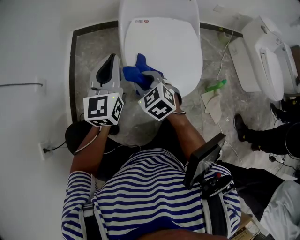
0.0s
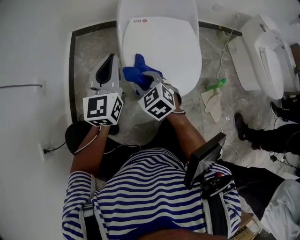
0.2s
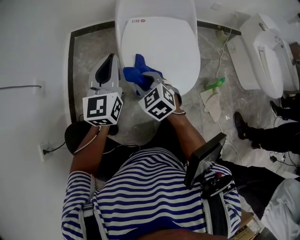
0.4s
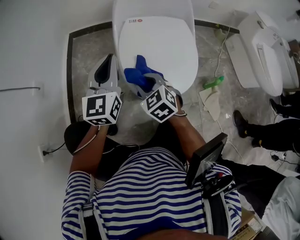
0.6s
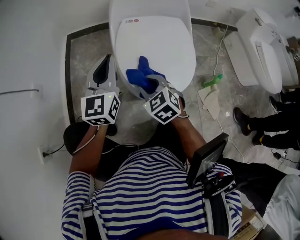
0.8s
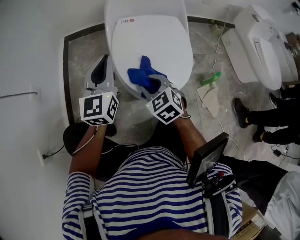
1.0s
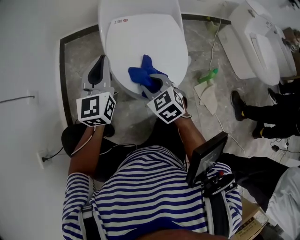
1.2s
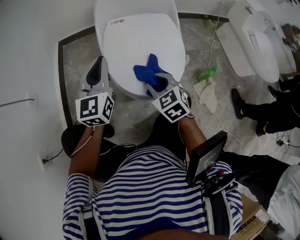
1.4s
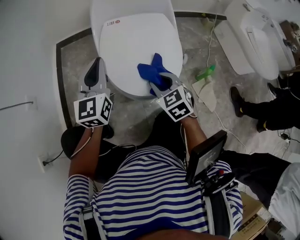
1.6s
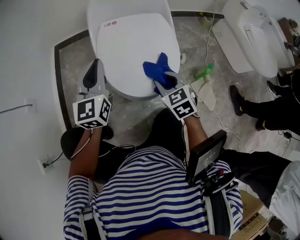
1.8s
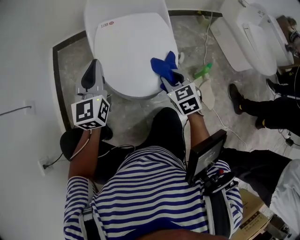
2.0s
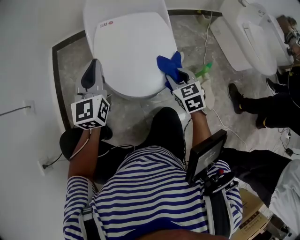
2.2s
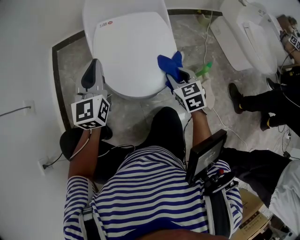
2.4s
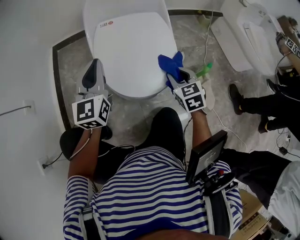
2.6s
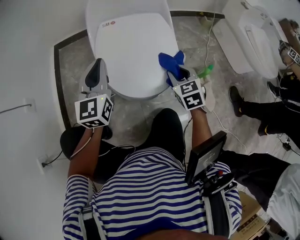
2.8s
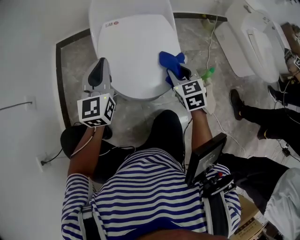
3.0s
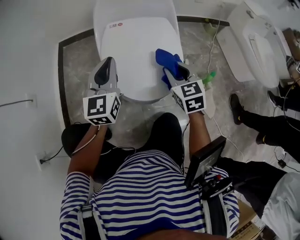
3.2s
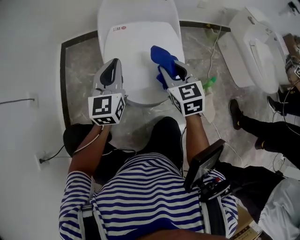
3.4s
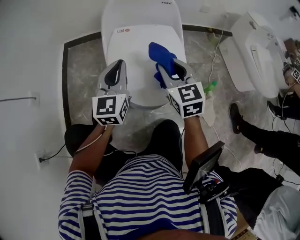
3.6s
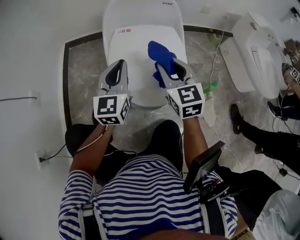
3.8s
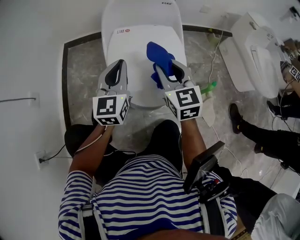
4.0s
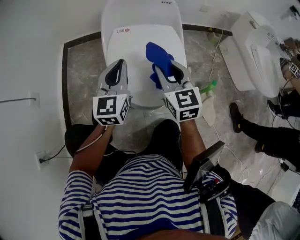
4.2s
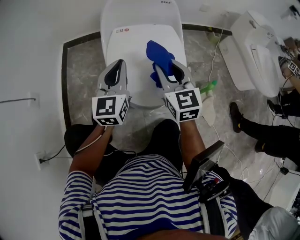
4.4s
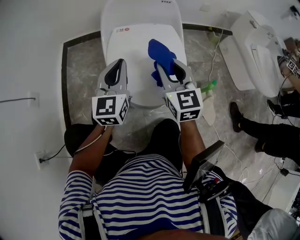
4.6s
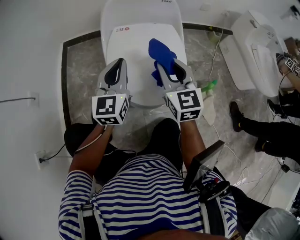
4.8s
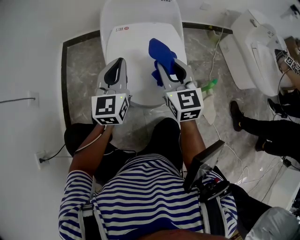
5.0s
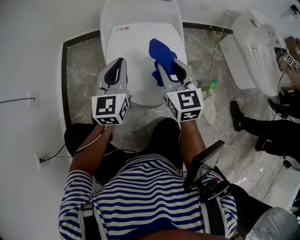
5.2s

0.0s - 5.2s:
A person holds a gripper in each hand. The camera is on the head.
0.0s - 1.8s: The right gripper shifts approximately 15 cm to the right. Meanwhile the left gripper changes place by roughly 5 cm.
1.8s - 3.4s: The right gripper heads upward and forward, covering approximately 10 cm.
3.4s - 5.2s: The grippers make only small movements.

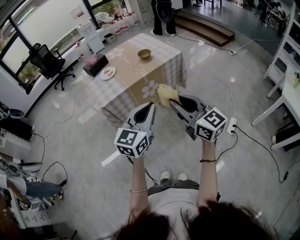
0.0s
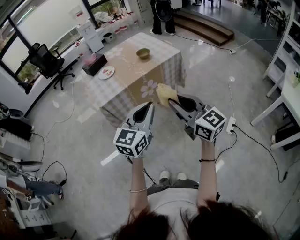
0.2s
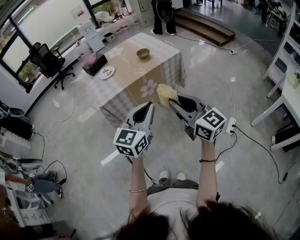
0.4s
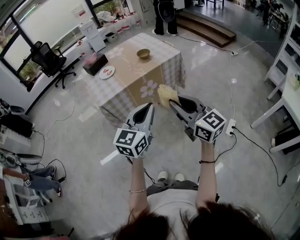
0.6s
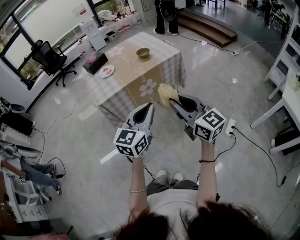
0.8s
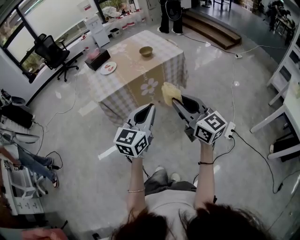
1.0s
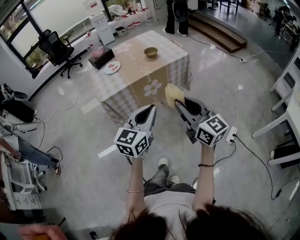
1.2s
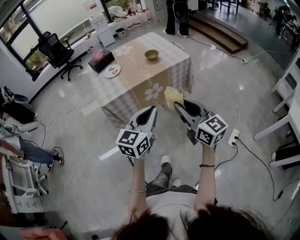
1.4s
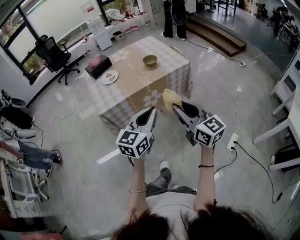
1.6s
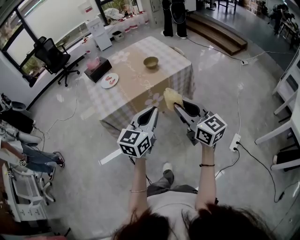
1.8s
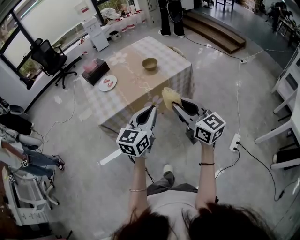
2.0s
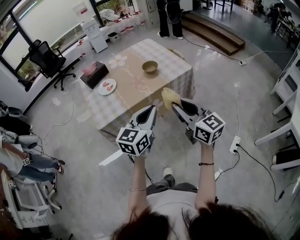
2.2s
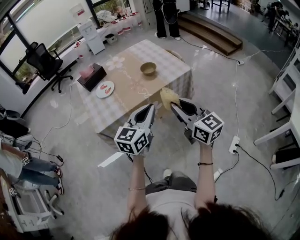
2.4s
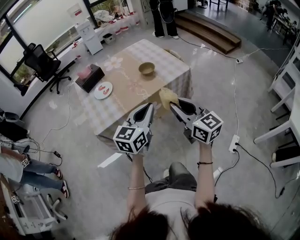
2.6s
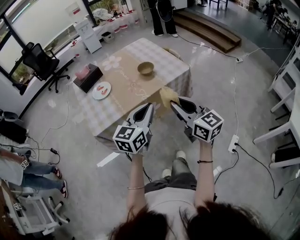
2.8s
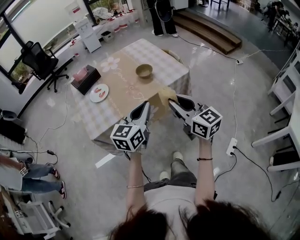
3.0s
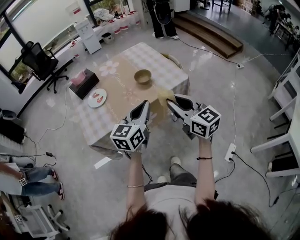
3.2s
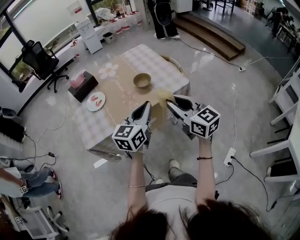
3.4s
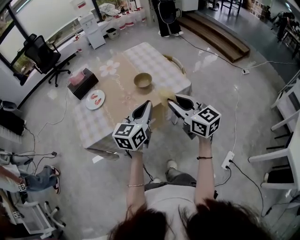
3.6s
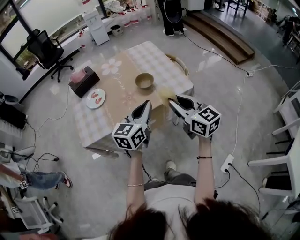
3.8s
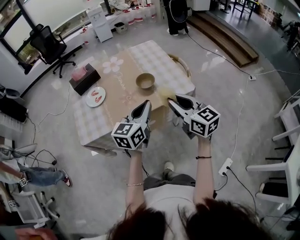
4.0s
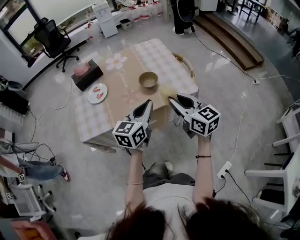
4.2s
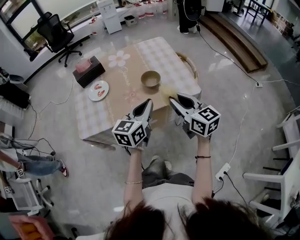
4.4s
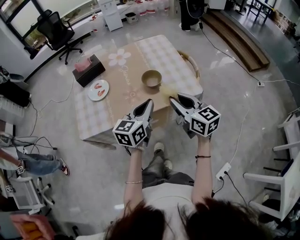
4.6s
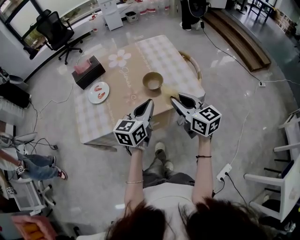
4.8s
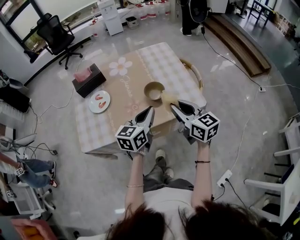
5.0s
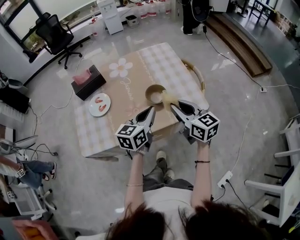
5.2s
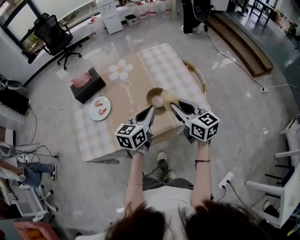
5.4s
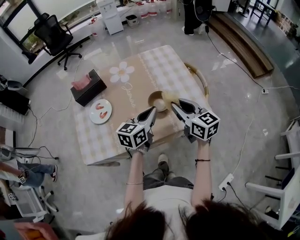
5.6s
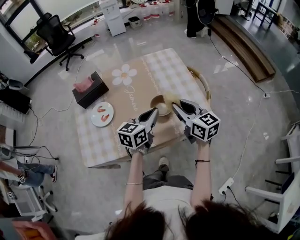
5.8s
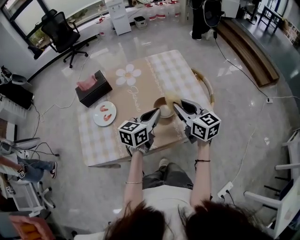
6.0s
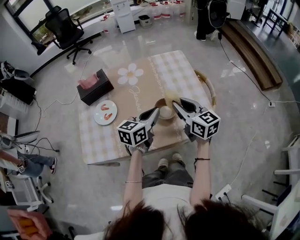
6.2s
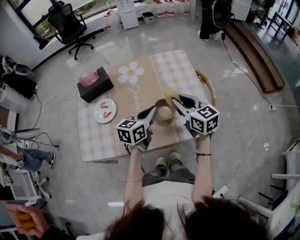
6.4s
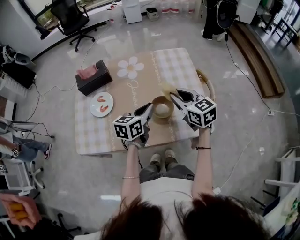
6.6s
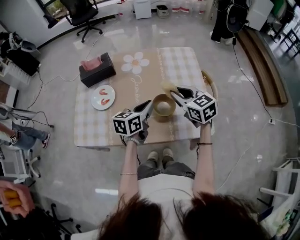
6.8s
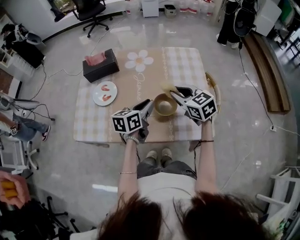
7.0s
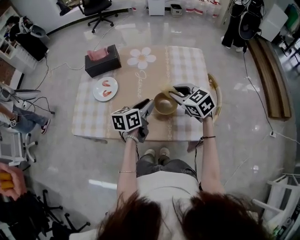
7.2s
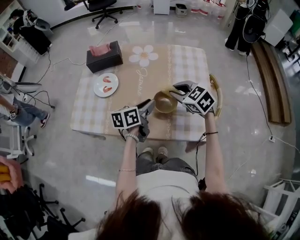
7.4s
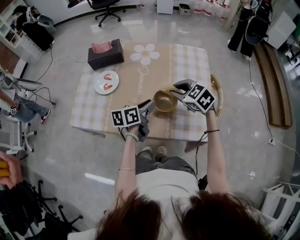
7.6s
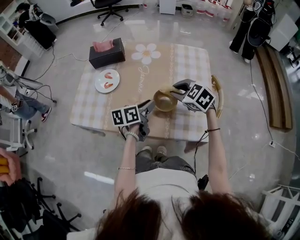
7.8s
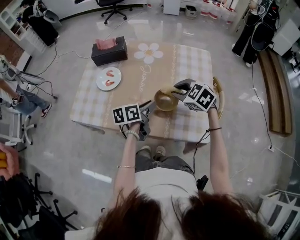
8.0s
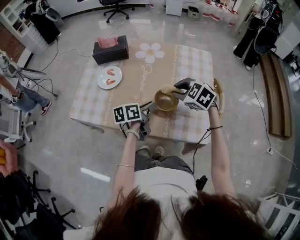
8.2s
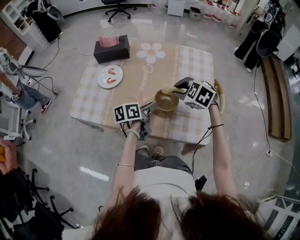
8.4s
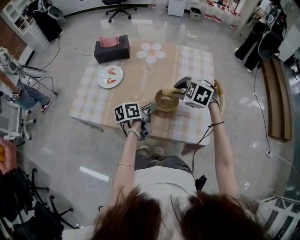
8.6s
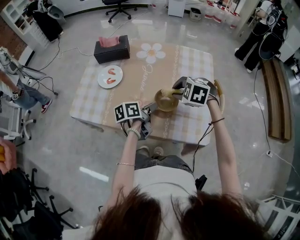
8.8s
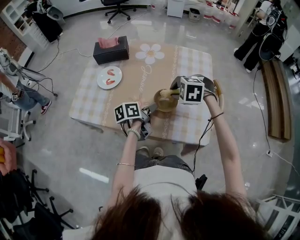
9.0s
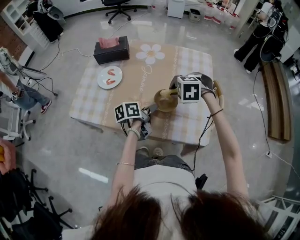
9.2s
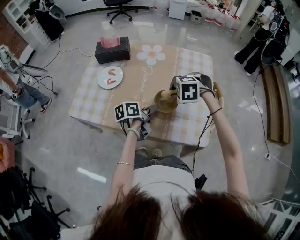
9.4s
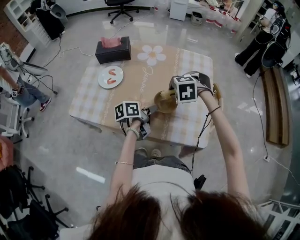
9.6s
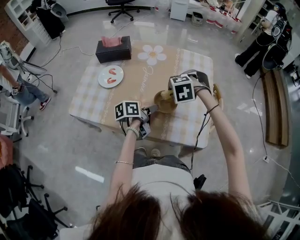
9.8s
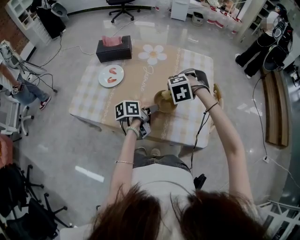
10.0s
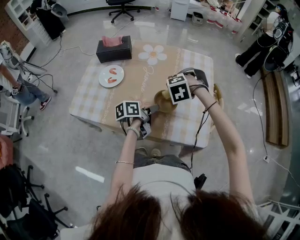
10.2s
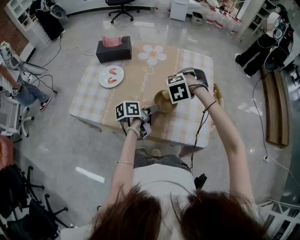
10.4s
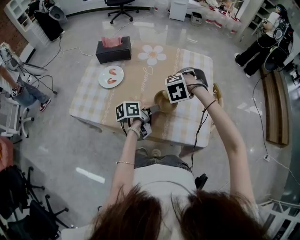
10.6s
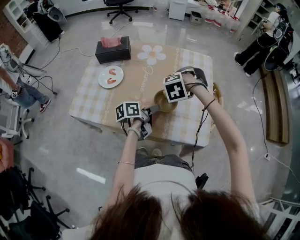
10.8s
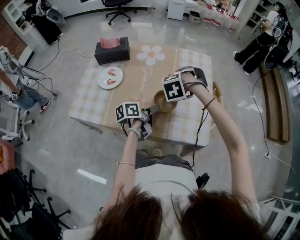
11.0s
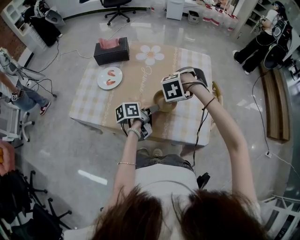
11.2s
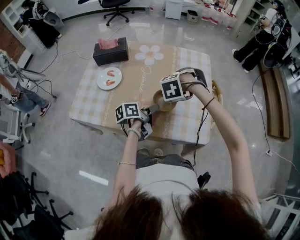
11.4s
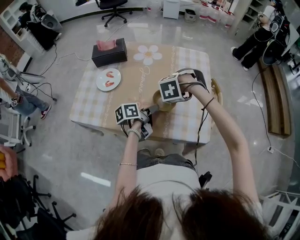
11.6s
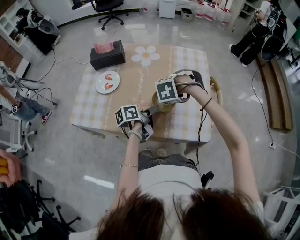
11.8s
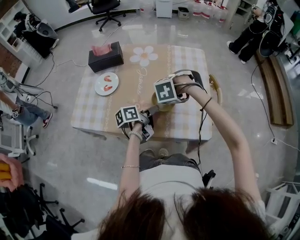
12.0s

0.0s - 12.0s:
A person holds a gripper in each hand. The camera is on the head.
0.0s - 1.6s: The grippers both shift forward by approximately 10 cm.
1.6s - 3.0s: Both grippers move forward, roughly 20 cm.
3.0s - 4.4s: Both grippers travel together forward, approximately 15 cm.
4.4s - 6.0s: Both grippers move forward, about 20 cm.
6.0s - 7.6s: The right gripper ends up approximately 10 cm from where it was, and angles its fingers downward, by about 30 degrees, while the left gripper moves downward, about 5 cm, rotates roughly 40 degrees, and opens its fingers.
7.6s - 9.0s: The left gripper changes its angle by about 20 degrees. Meanwhile the right gripper changes its angle by some 40 degrees.
9.0s - 10.4s: The right gripper swivels approximately 20 degrees.
10.4s - 12.0s: The right gripper turns by roughly 20 degrees.

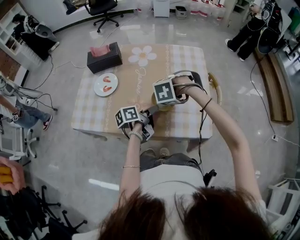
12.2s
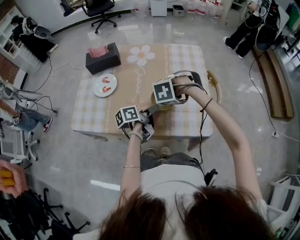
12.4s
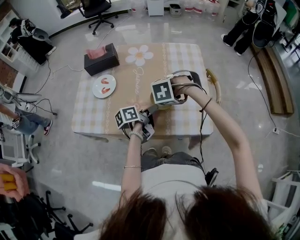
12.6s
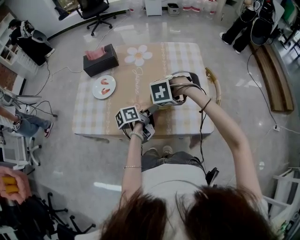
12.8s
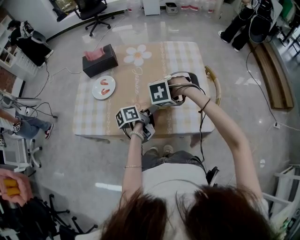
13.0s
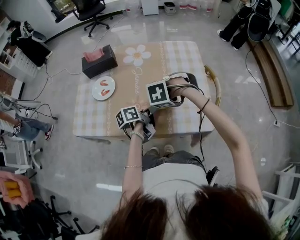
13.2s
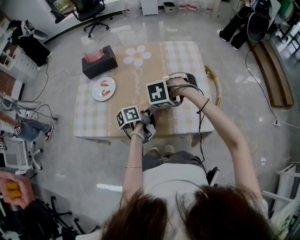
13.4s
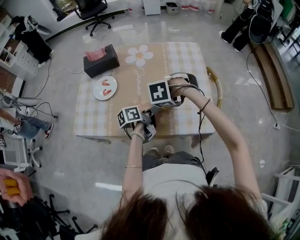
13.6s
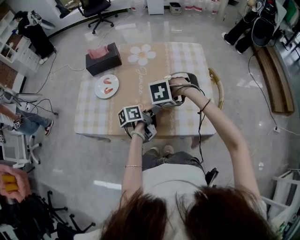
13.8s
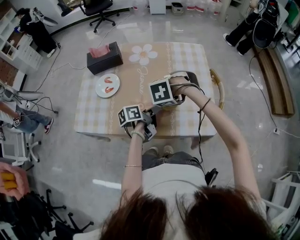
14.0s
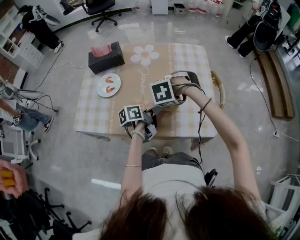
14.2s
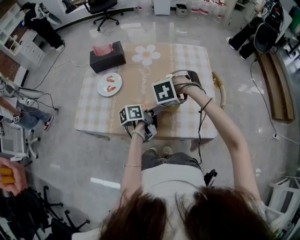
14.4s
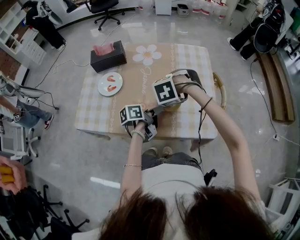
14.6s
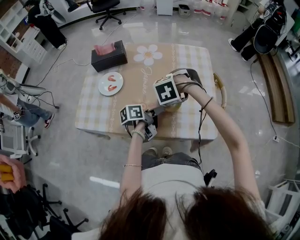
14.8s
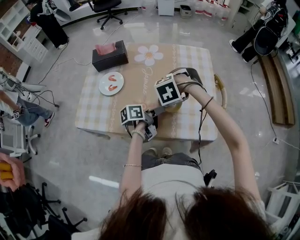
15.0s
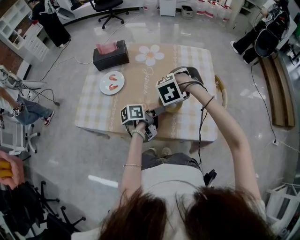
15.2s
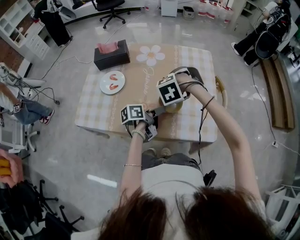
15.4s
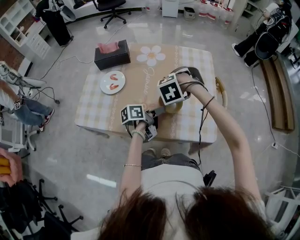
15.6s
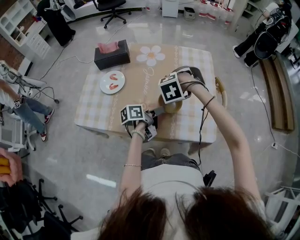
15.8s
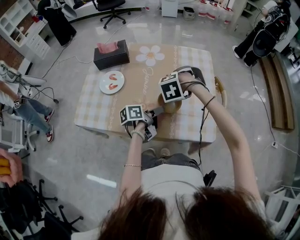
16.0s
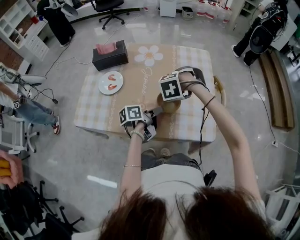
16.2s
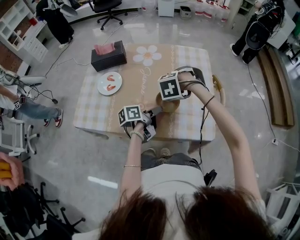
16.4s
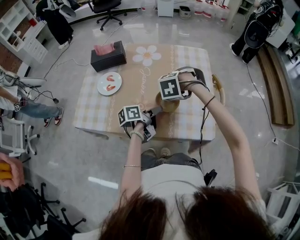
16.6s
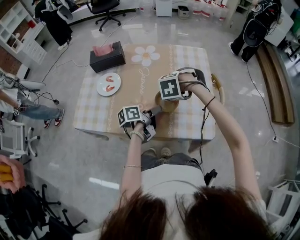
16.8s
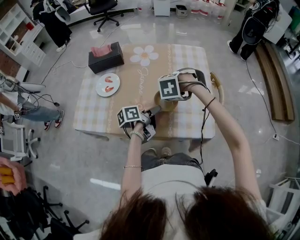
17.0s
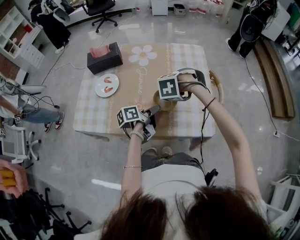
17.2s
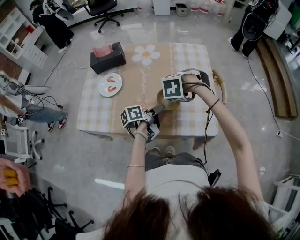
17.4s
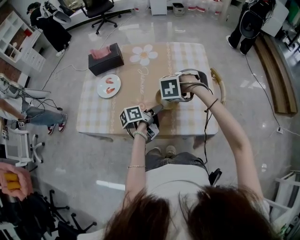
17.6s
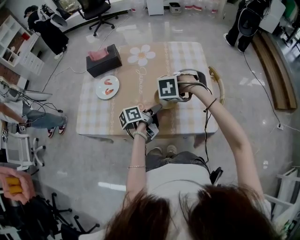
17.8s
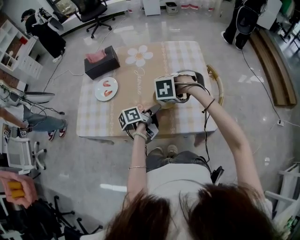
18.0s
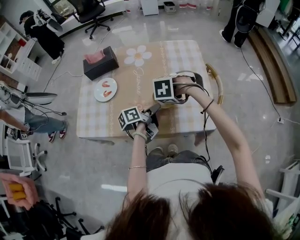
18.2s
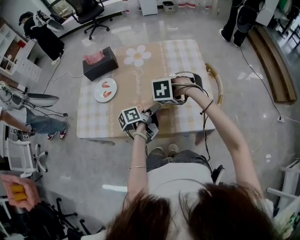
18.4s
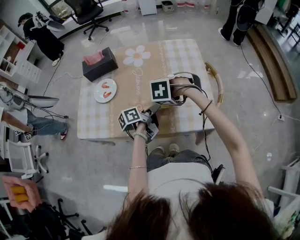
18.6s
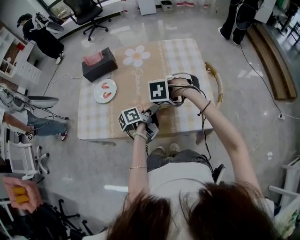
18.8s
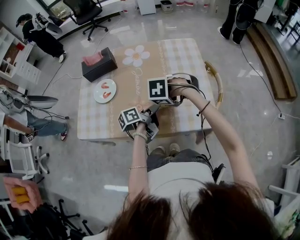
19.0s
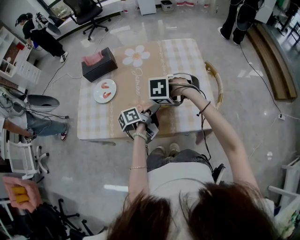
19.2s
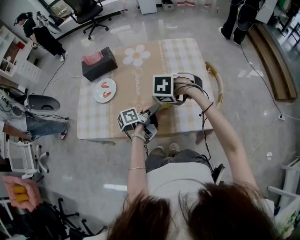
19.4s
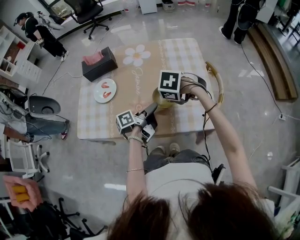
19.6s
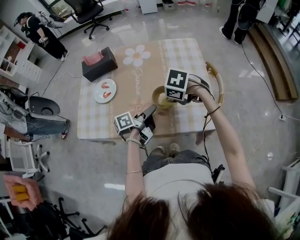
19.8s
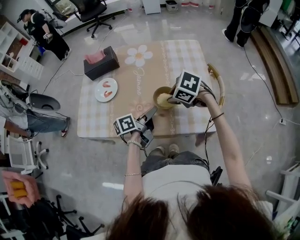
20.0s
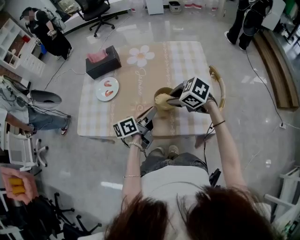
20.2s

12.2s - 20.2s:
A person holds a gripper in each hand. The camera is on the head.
12.2s - 13.8s: There are only small adjustments of the grippers.
13.8s - 15.4s: The right gripper swivels some 20 degrees.
15.4s - 17.0s: The grippers stay close to where they were, moving slightly.
17.0s - 18.6s: The grippers stay close to where they were, moving slightly.
18.6s - 20.2s: The left gripper rotates roughly 20 degrees. The right gripper points its fingers approximately 40 degrees further upward.
